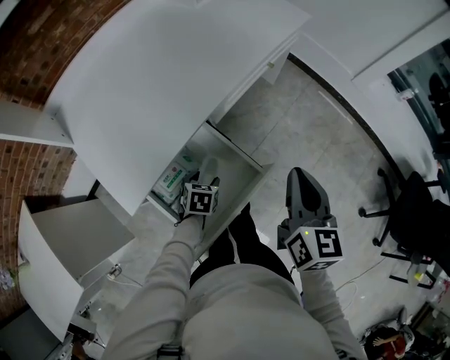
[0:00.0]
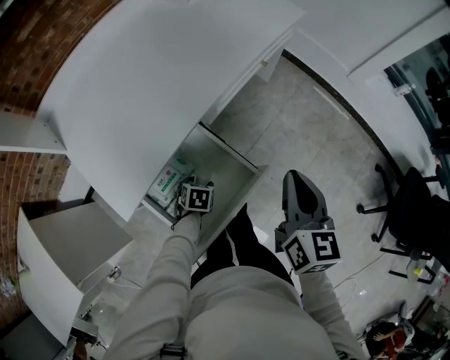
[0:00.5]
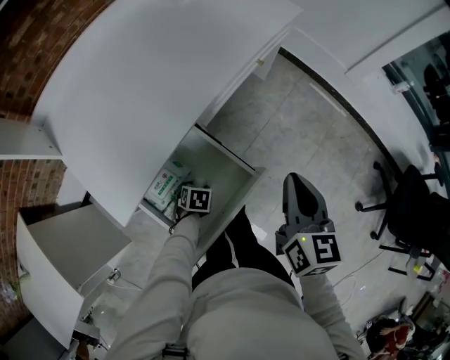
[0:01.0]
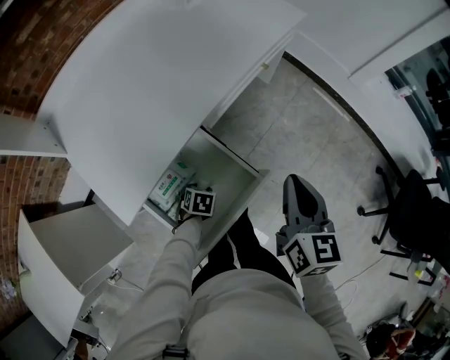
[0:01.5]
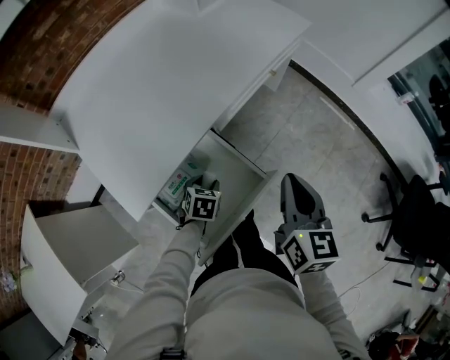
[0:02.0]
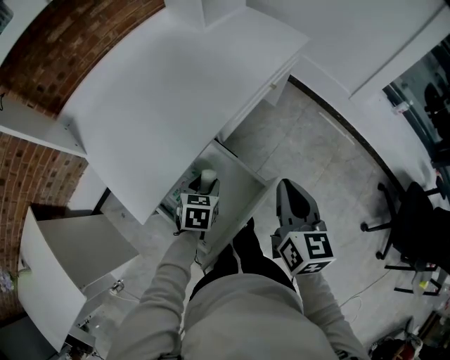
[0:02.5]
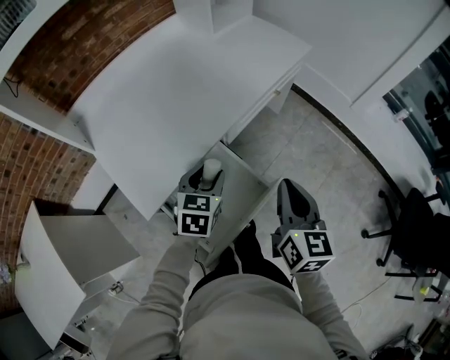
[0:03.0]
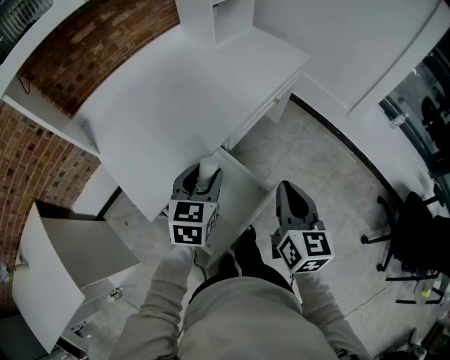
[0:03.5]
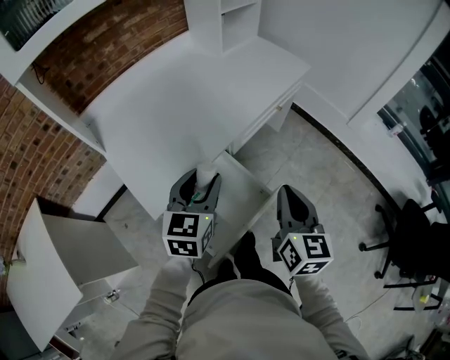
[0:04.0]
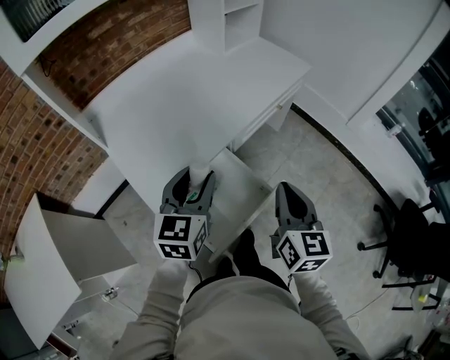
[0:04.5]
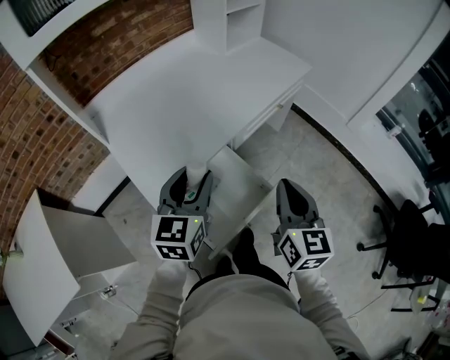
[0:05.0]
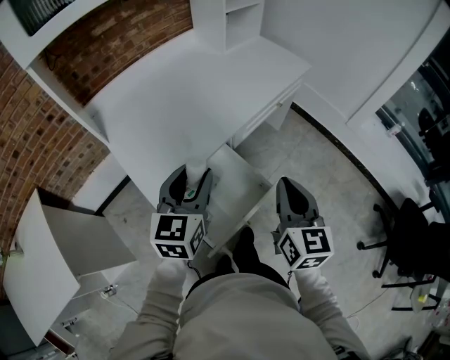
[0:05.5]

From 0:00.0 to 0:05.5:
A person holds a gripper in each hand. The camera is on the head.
From 0:00.0 to 0:02.0: The left gripper reaches roughly 5 cm downward, then returns.
From 0:02.0 to 0:03.5: The right gripper moves about 5 cm. Meanwhile the left gripper goes roughly 25 cm upward, and tips its fingers upward by some 30 degrees.
From 0:03.5 to 0:05.5: The right gripper shifts by some 5 cm. The left gripper shifts approximately 10 cm upward and backward.

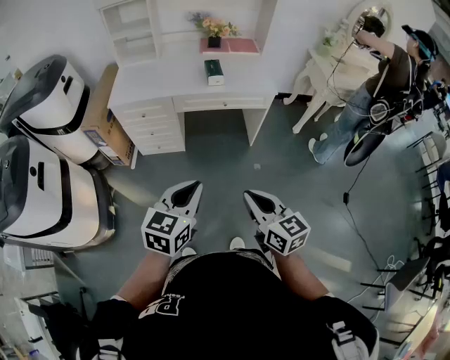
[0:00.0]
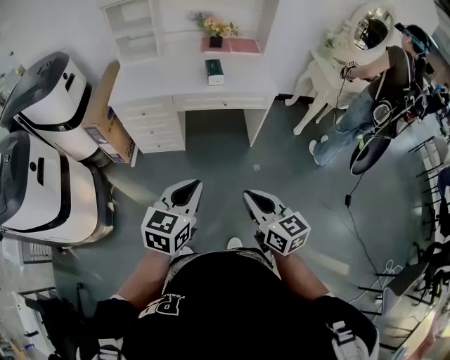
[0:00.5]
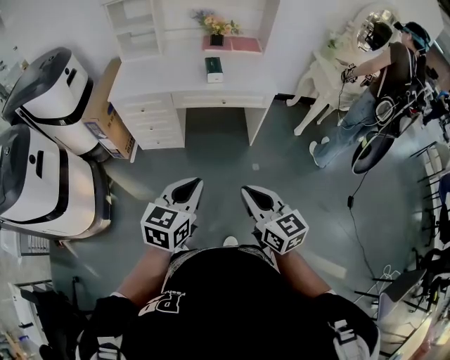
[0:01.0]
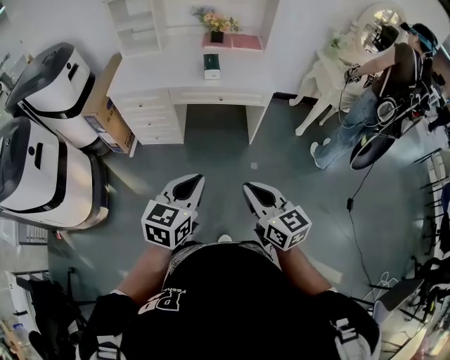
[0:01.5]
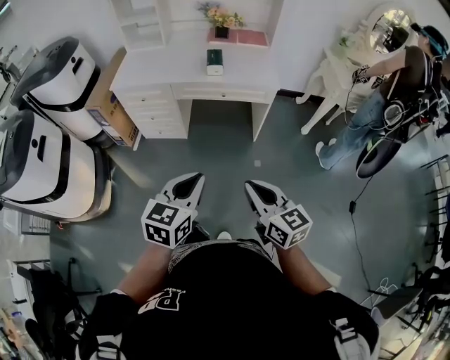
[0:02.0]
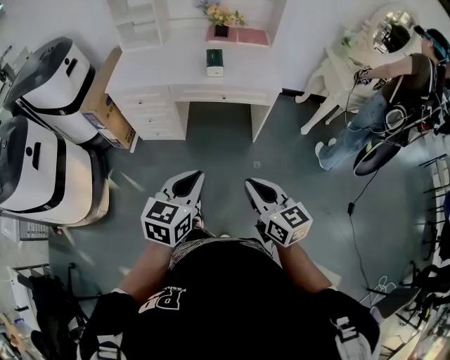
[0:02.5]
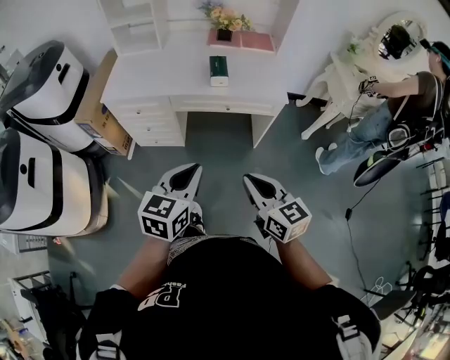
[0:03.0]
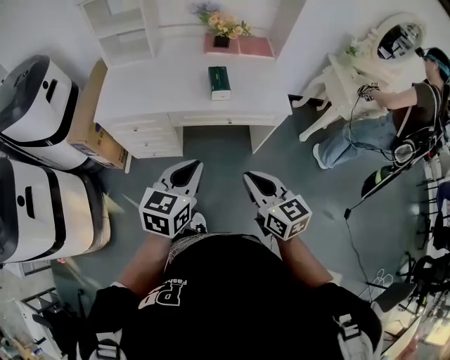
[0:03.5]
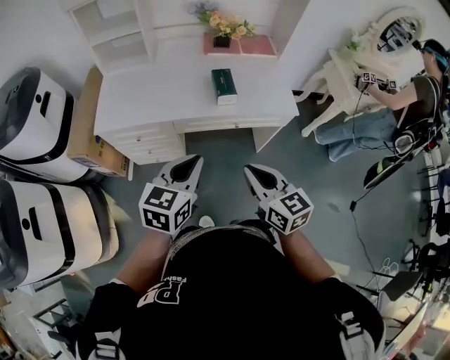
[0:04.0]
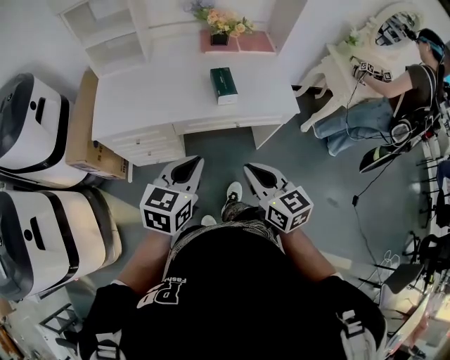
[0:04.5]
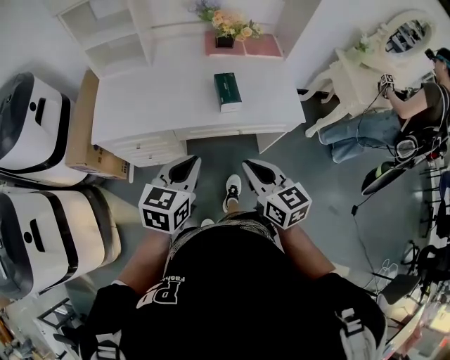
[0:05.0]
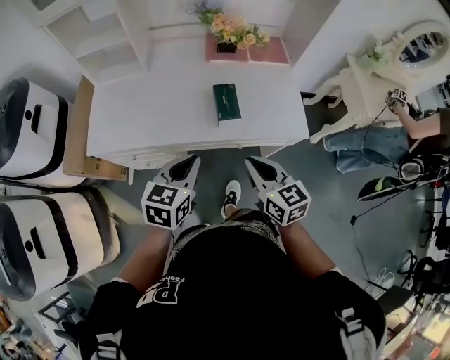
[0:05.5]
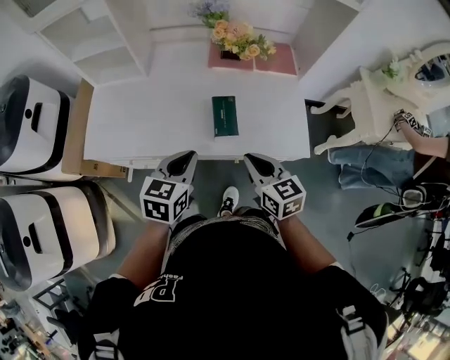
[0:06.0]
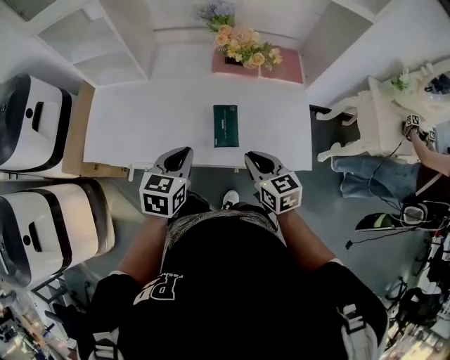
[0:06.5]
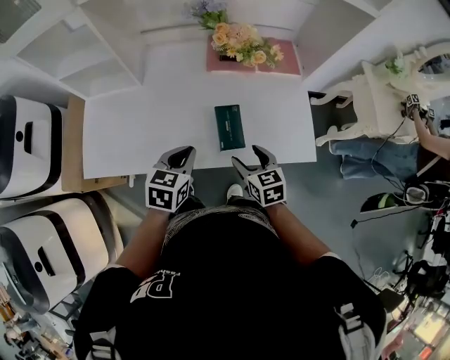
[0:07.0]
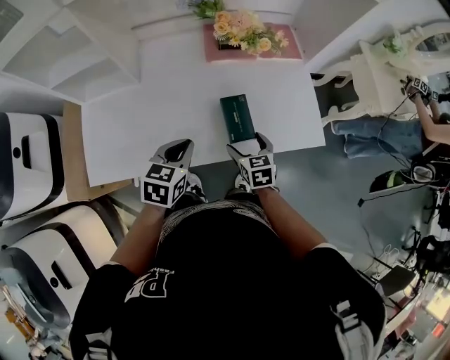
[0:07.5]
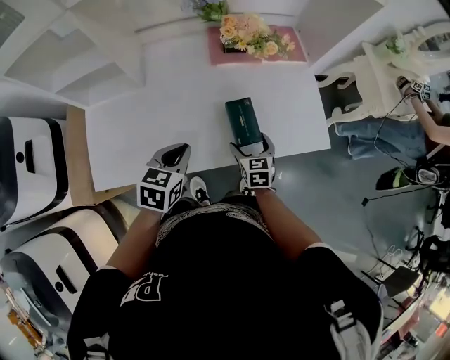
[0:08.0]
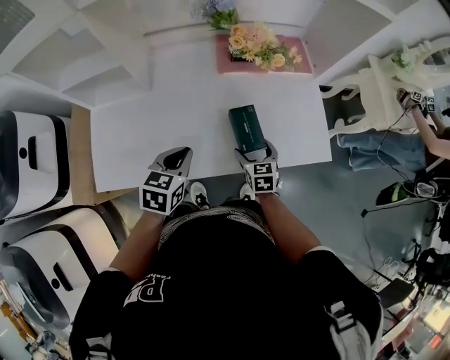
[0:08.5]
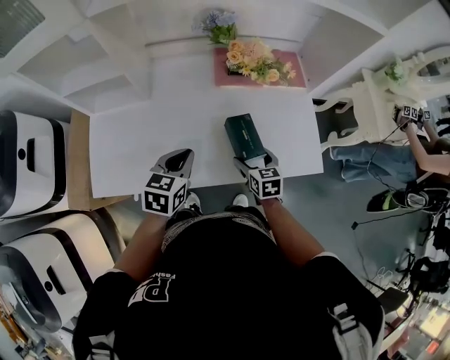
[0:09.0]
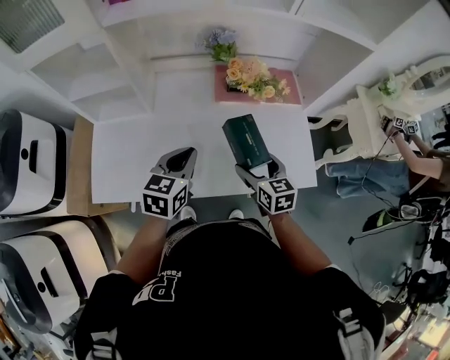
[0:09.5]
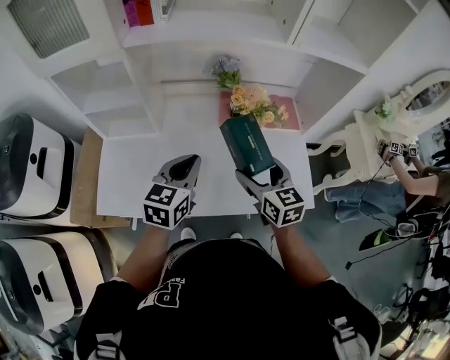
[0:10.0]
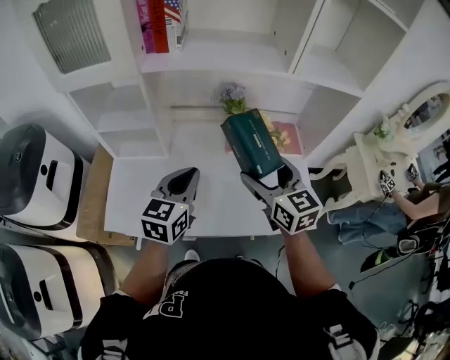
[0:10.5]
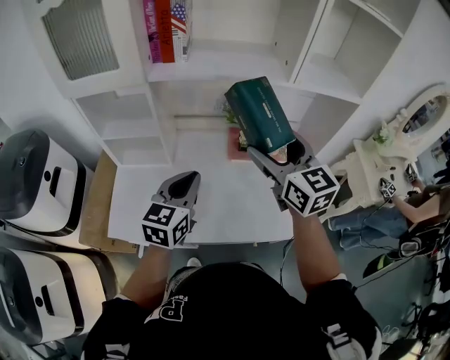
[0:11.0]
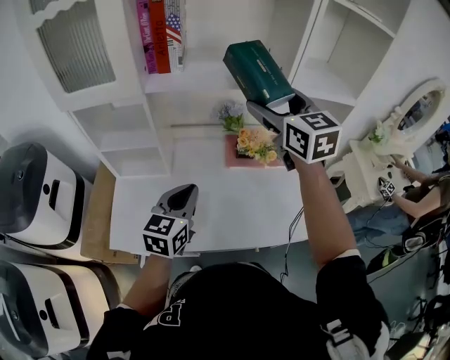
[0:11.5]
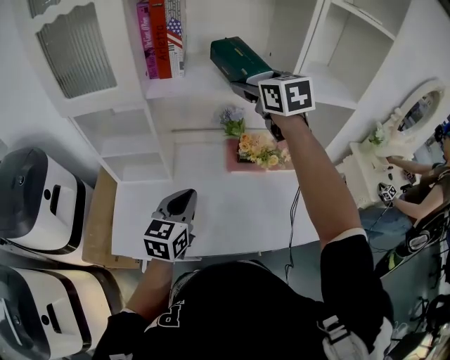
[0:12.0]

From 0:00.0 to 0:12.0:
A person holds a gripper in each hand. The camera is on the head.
From 0:00.0 to 0:02.0: The two grippers go roughly 10 cm to the right.
From 0:02.0 to 0:04.0: The left gripper shifts roughly 35 cm forward. Meanwhile the right gripper moves forward and to the left, some 35 cm.
From 0:04.0 to 0:06.0: The two grippers go roughly 25 cm forward.
From 0:06.0 to 0:08.0: The right gripper moves downward, approximately 20 cm, changes its angle by approximately 30 degrees, and opens its fingers. The left gripper moves some 15 cm.
From 0:08.0 to 0:10.0: The left gripper shifts approximately 15 cm upward and forward, and rotates about 20 degrees. Meanwhile the right gripper goes about 25 cm upward, and rotates about 30 degrees.
From 0:10.0 to 0:12.0: The left gripper goes approximately 5 cm to the left; the right gripper travels upward and forward by about 35 cm.

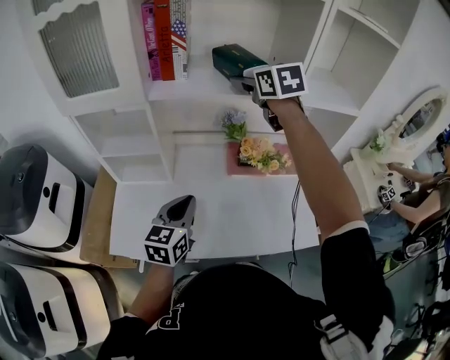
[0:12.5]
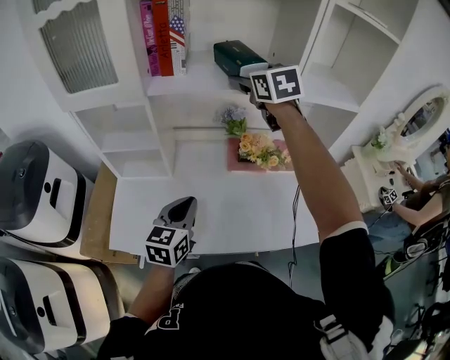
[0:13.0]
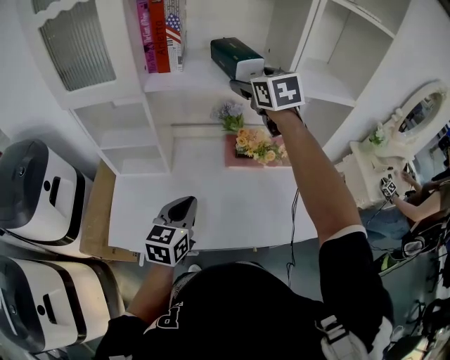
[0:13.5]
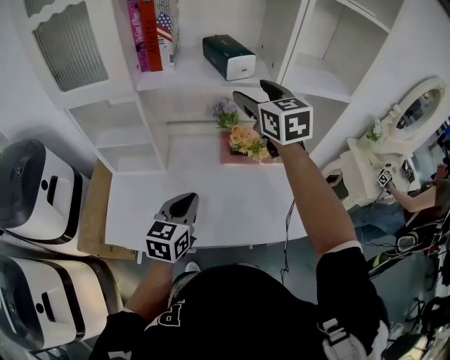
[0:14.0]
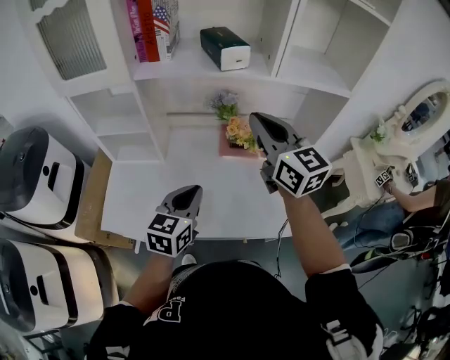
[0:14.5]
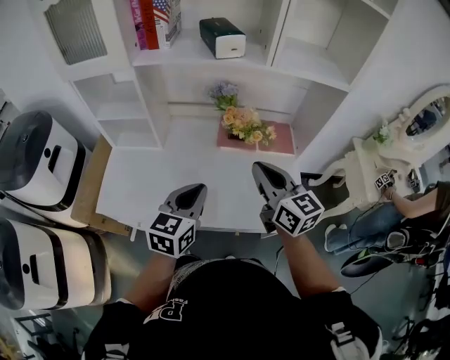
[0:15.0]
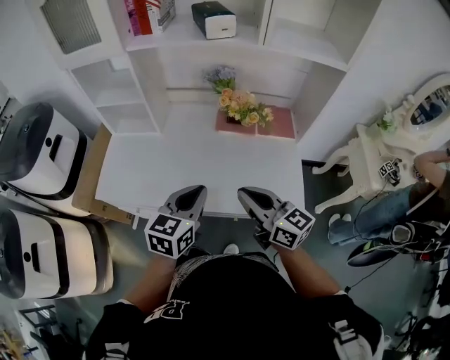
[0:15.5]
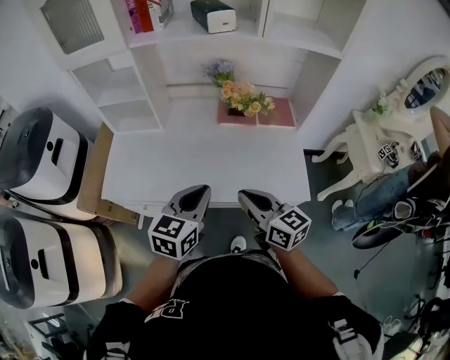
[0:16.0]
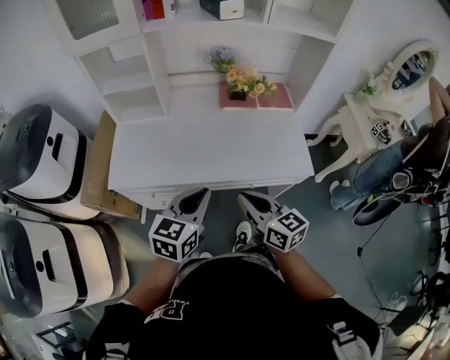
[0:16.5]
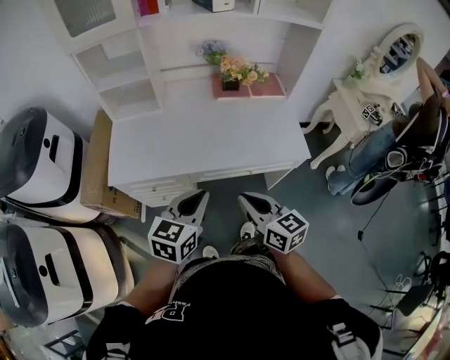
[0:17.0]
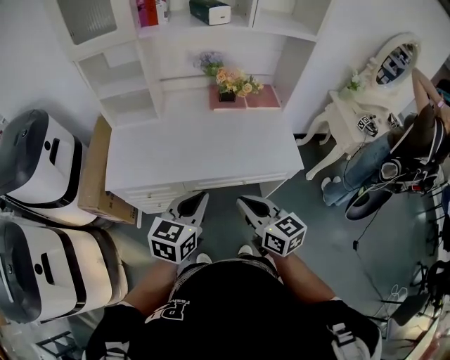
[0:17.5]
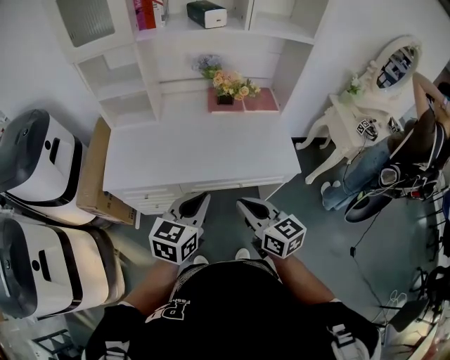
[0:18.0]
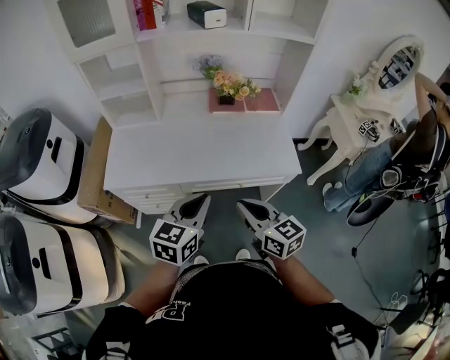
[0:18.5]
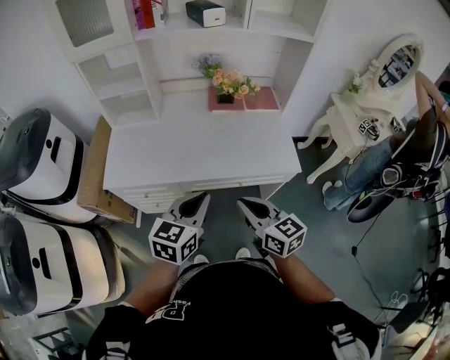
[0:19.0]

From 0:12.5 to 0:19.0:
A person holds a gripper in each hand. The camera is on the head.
From 0:12.5 to 0:14.5: The left gripper travels to the right by roughly 10 cm. The right gripper heads backward, covering some 20 cm, swivels approximately 30 degrees, and closes up.
From 0:14.5 to 0:17.0: The right gripper heads backward and downward, covering about 50 cm, and turns by roughly 30 degrees, while the left gripper moves backward, some 25 cm.
From 0:17.0 to 0:19.0: Both grippers travel together to the right, some 5 cm.

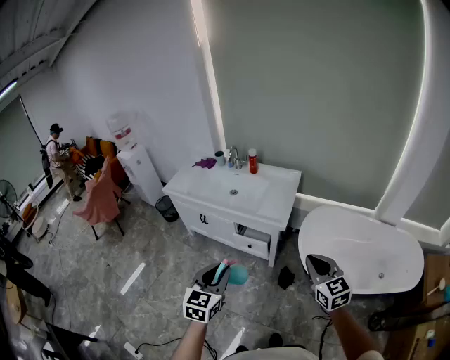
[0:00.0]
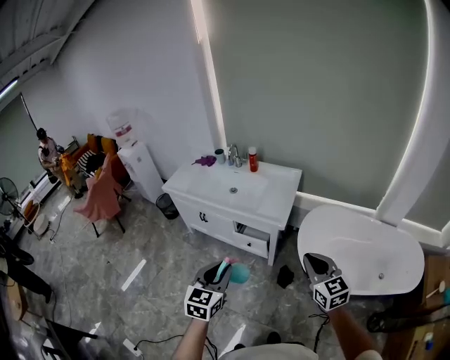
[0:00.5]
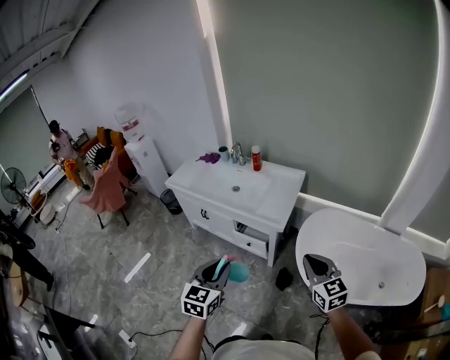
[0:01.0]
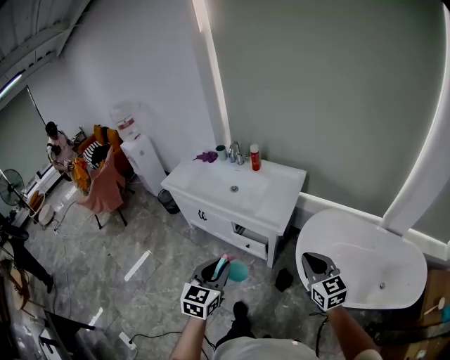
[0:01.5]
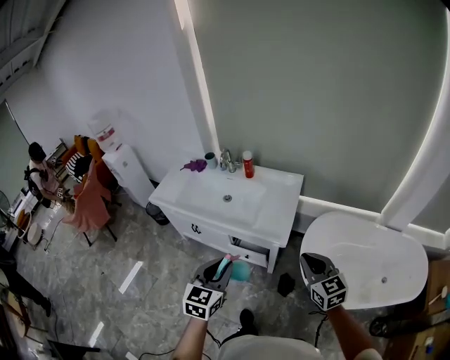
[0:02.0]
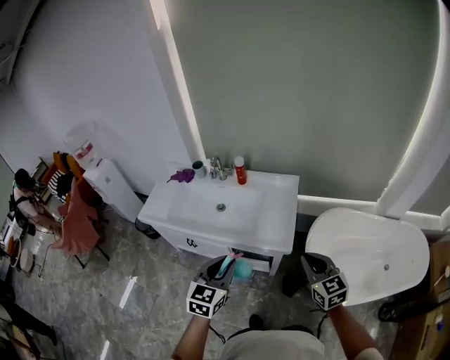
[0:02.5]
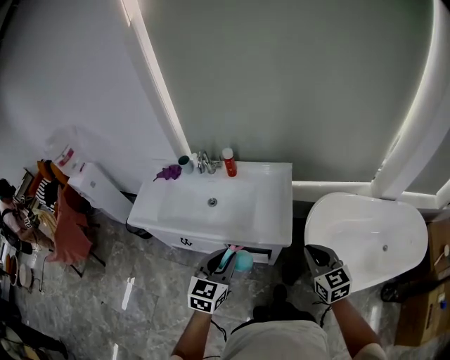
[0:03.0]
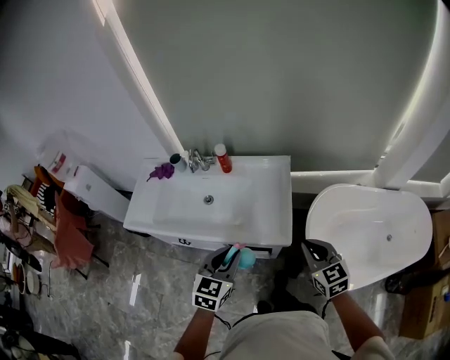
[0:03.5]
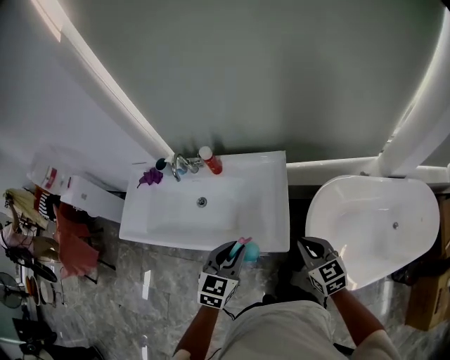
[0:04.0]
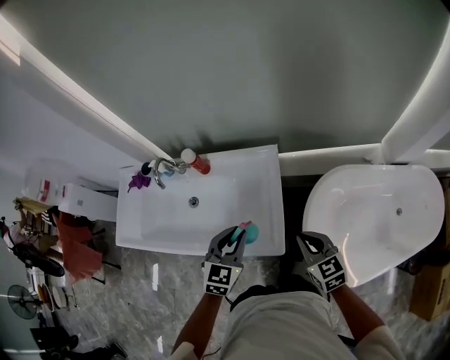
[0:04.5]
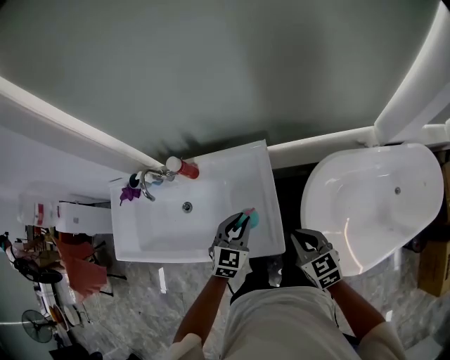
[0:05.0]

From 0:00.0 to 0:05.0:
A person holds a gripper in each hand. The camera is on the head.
From 0:00.0 to 0:02.5: The two grippers go approximately 30 cm forward.
From 0:02.5 to 0:05.0: The left gripper goes approximately 40 cm forward, downward and to the right, and rotates some 20 degrees. Meanwhile the right gripper shifts about 30 cm forward and downward.
